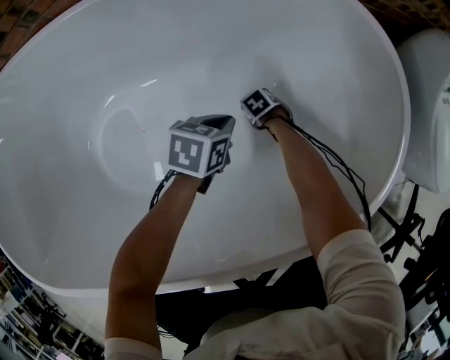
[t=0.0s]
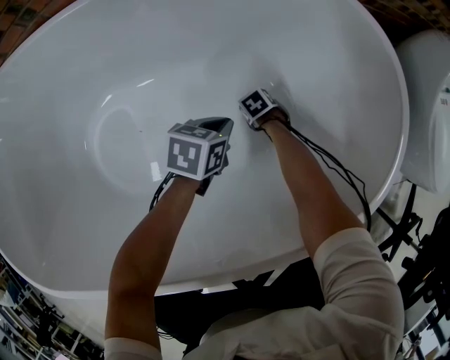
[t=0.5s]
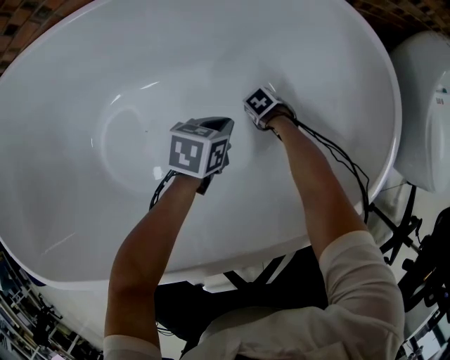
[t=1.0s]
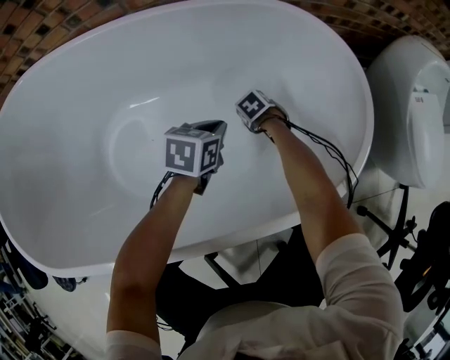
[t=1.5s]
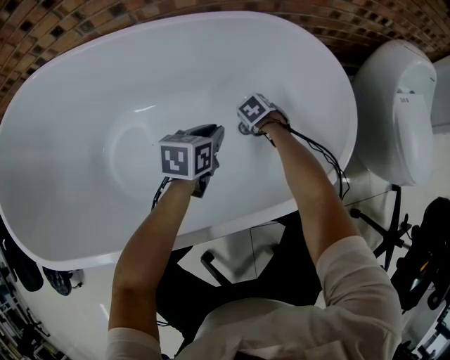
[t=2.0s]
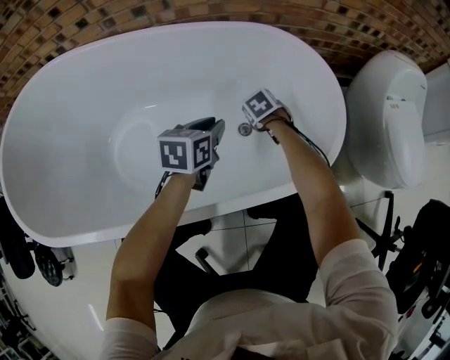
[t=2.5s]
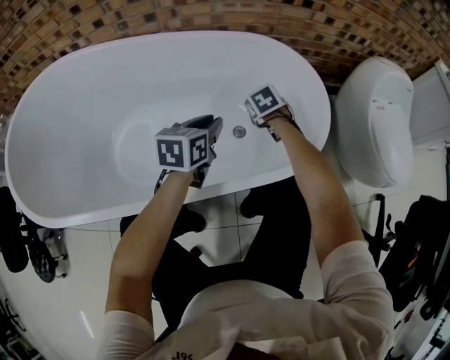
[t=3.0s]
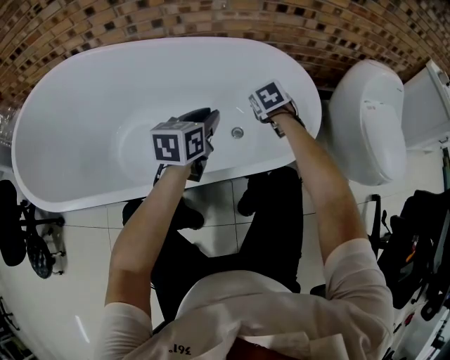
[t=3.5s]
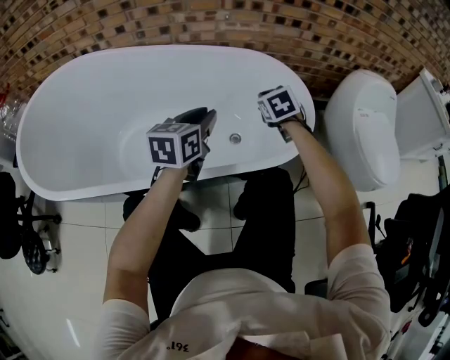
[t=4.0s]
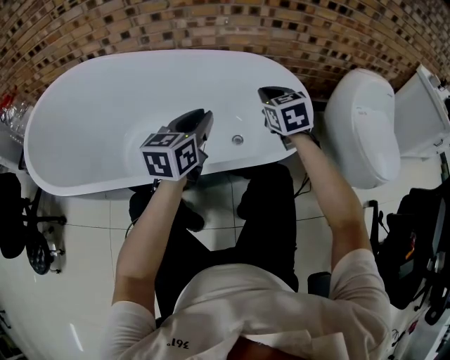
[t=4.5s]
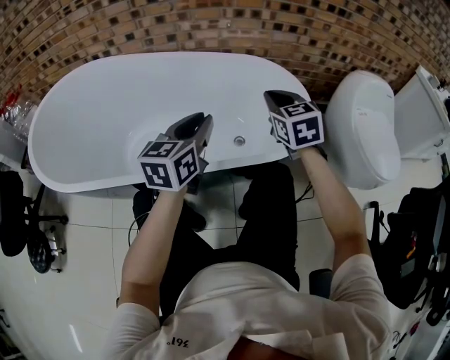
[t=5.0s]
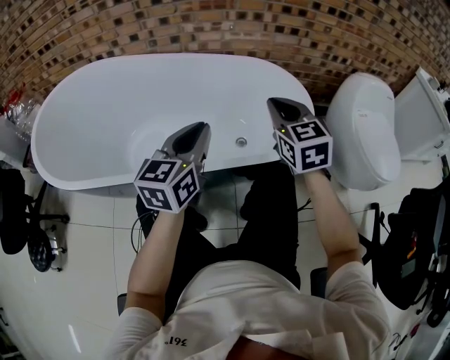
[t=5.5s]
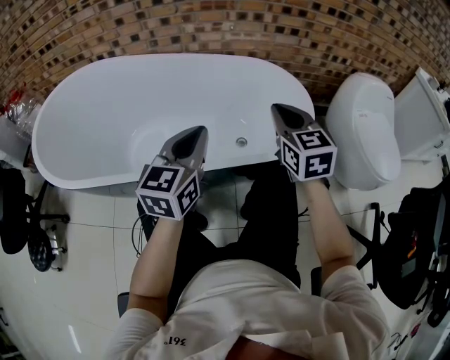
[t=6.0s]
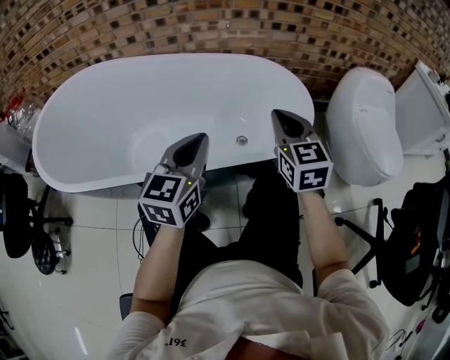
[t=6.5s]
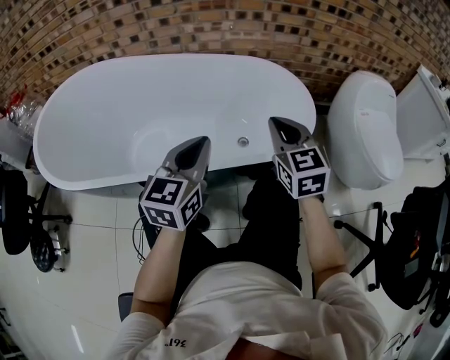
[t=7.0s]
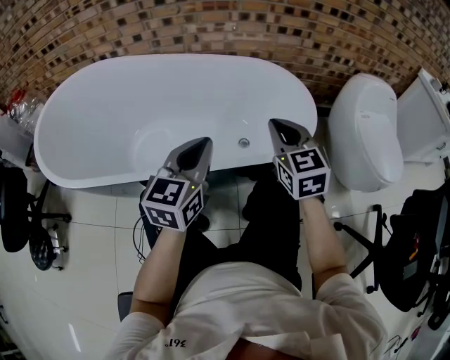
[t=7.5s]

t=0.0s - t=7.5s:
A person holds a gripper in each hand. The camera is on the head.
t=0.0s - t=2.0s: The grippers both shift upward by some 15 cm.
t=2.0s - t=4.0s: The two grippers go roughly 25 cm upward. The left gripper swivels about 30 degrees. Meanwhile the right gripper points its fingers approximately 30 degrees further upward.
t=4.0s - t=5.5s: The right gripper travels backward and upward by roughly 25 cm, and turns by roughly 30 degrees; the left gripper moves backward and upward, about 15 cm.
t=5.5s - t=7.5s: There are only small adjustments of the grippers.

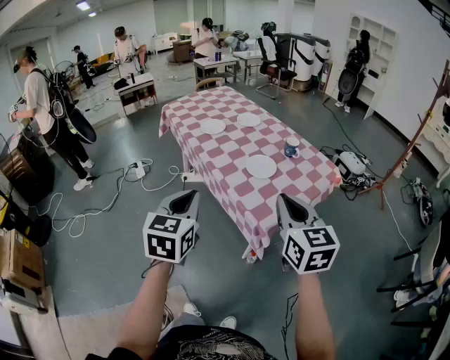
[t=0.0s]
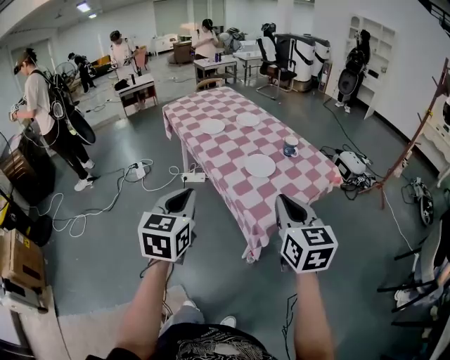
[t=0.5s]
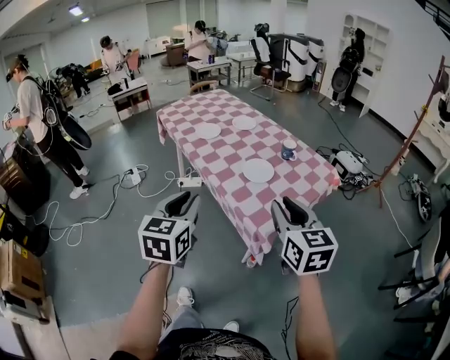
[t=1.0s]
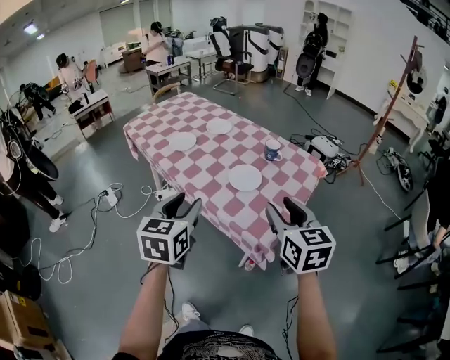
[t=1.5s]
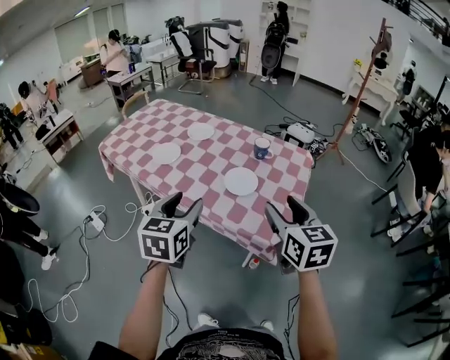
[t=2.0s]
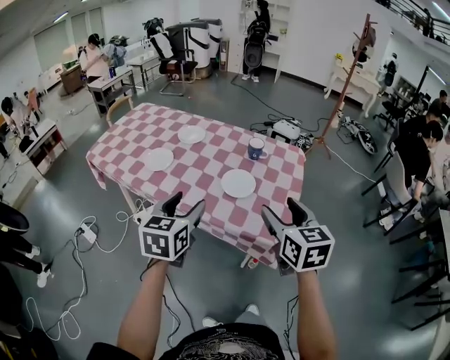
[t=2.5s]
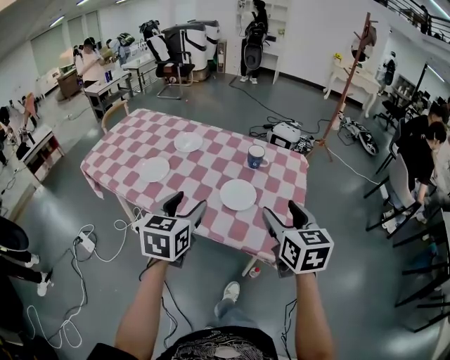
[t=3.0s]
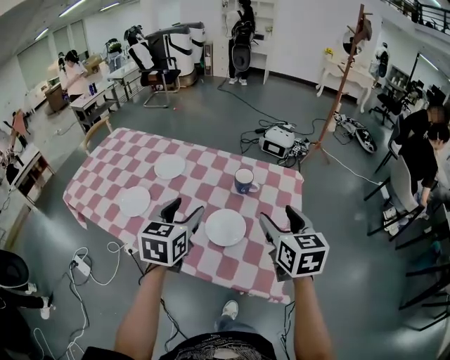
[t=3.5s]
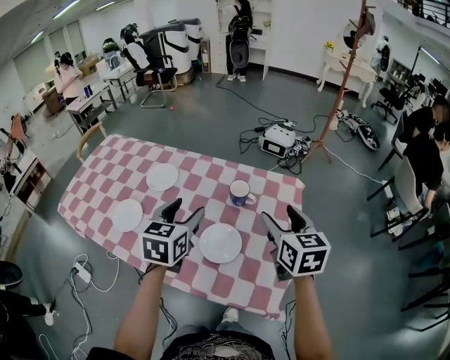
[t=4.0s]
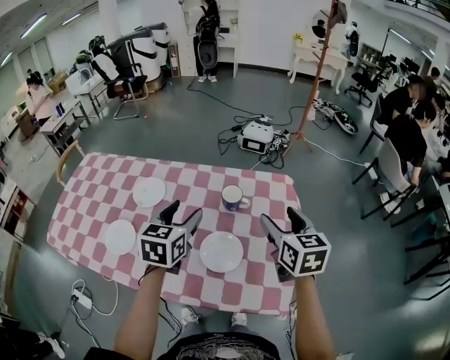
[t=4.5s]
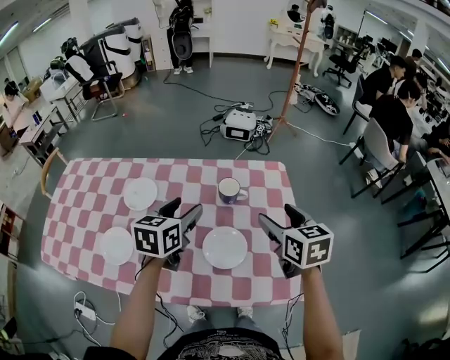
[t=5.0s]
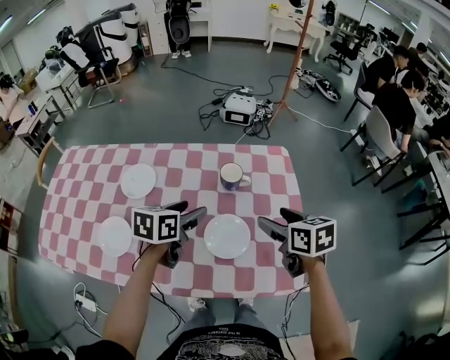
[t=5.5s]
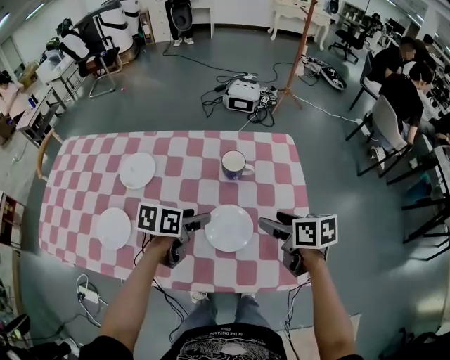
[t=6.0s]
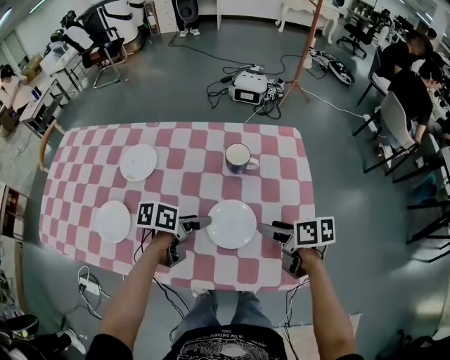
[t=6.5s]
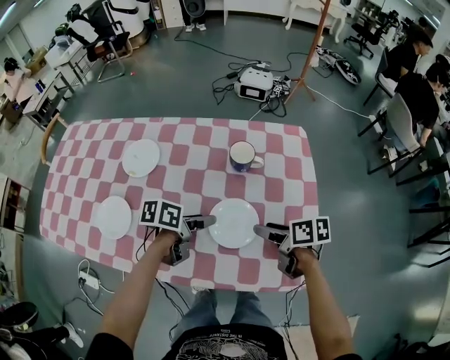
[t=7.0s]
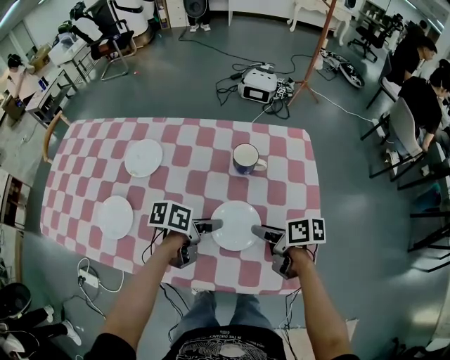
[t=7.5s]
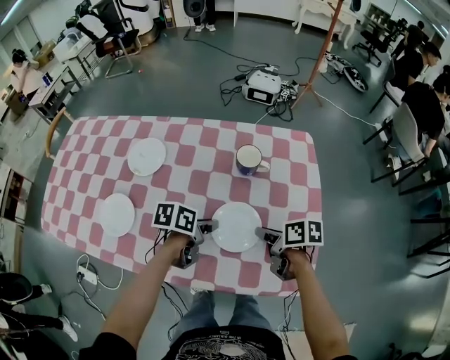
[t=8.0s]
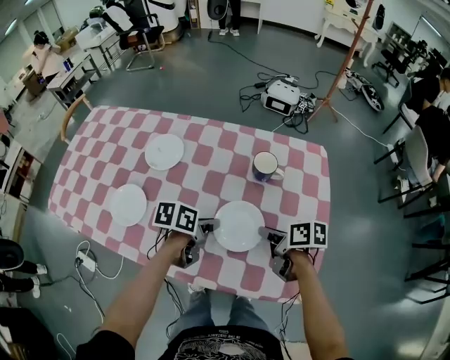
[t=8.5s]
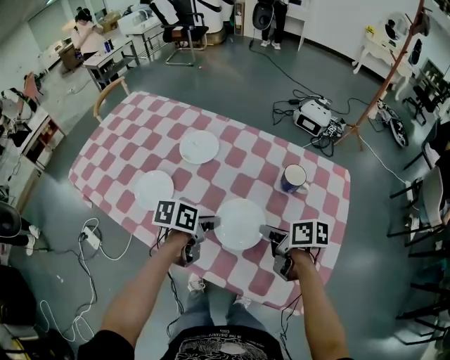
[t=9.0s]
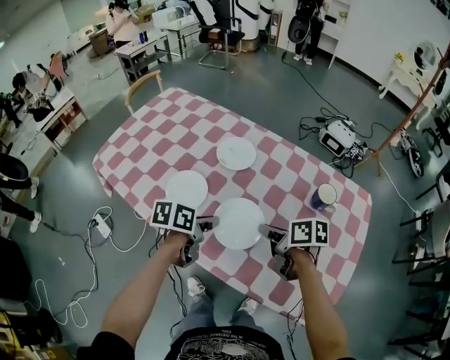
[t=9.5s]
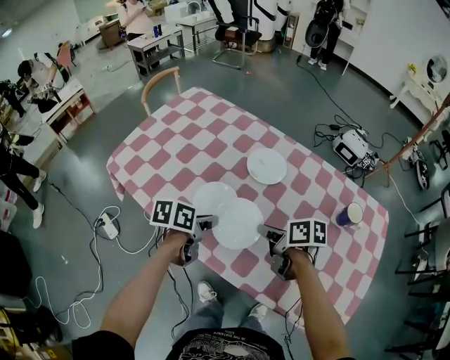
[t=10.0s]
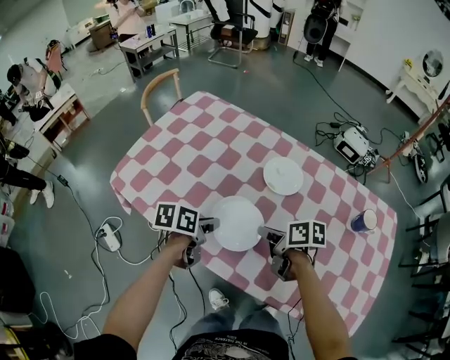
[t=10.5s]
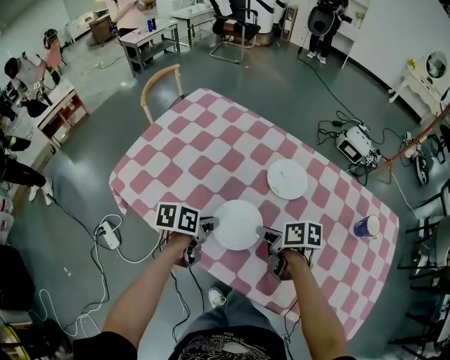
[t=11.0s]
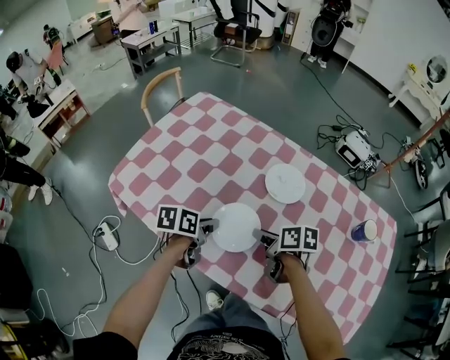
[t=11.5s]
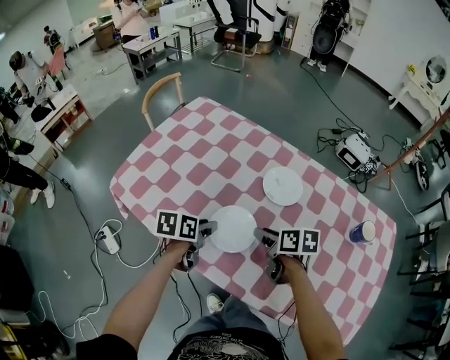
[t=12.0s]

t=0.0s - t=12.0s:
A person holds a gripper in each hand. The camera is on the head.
t=0.0s - t=2.0s: The right gripper shifts by some 10 cm, rotates some 30 degrees, and opens up. The left gripper shifts by about 20 cm, rotates some 30 degrees, and opens.
t=2.0s - t=4.0s: The two grippers go about 30 cm forward.
t=4.0s - t=6.0s: Both grippers move downward, some 15 cm. The right gripper changes its angle by approximately 40 degrees. Meanwhile the left gripper rotates approximately 50 degrees.
t=6.0s - t=8.0s: The grippers both shift downward by roughly 10 cm. The left gripper closes its fingers. Meanwhile the right gripper swivels approximately 20 degrees, and closes its fingers.
t=8.0s - t=10.0s: The right gripper moves some 35 cm, and swivels roughly 30 degrees; the left gripper ends up about 35 cm from where it was, and rotates some 30 degrees.
t=10.0s - t=12.0s: The right gripper is displaced forward and to the left by approximately 10 cm, while the left gripper heads to the left and forward, covering about 10 cm, and opens.

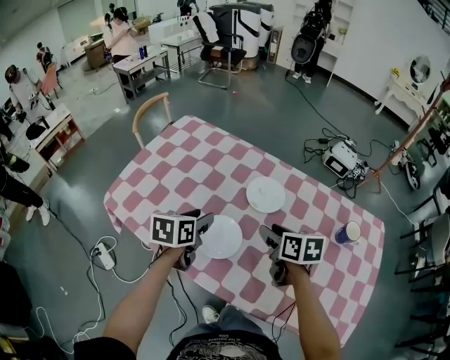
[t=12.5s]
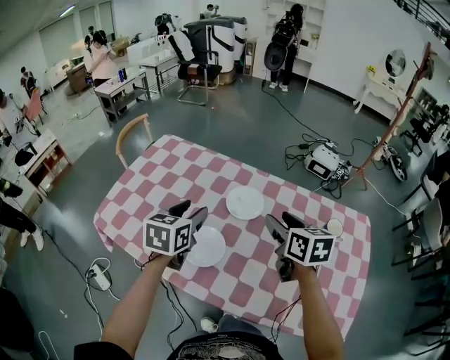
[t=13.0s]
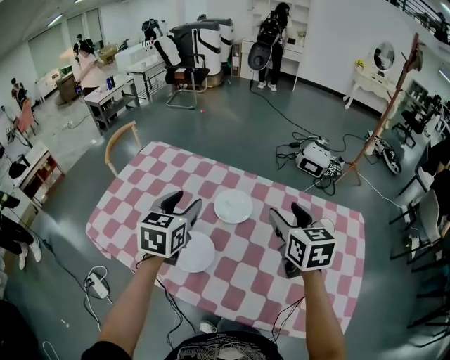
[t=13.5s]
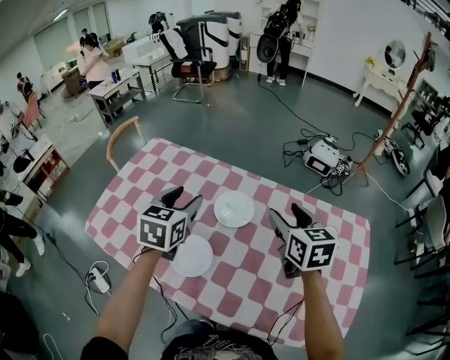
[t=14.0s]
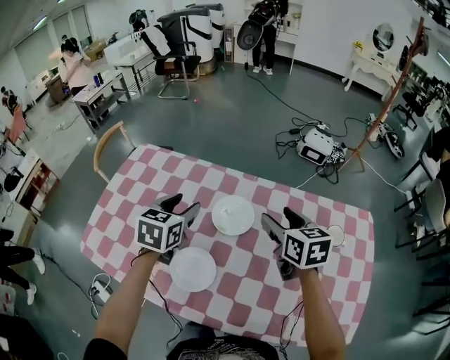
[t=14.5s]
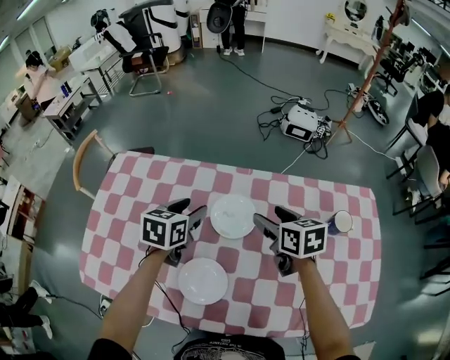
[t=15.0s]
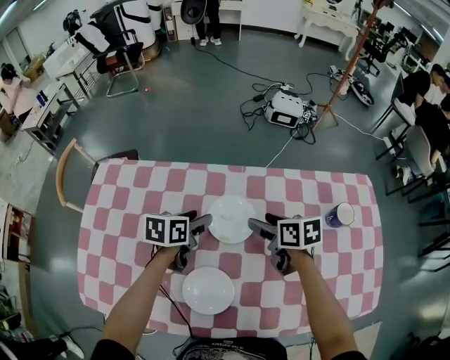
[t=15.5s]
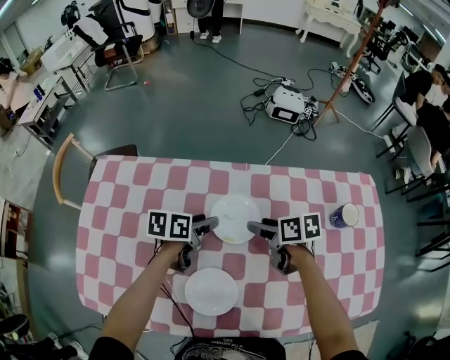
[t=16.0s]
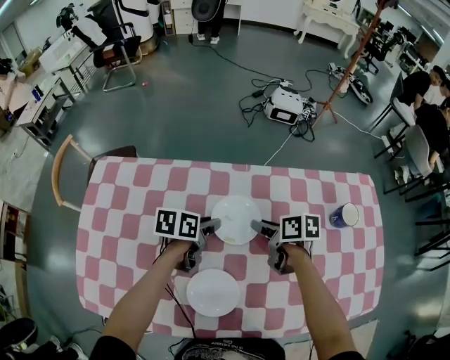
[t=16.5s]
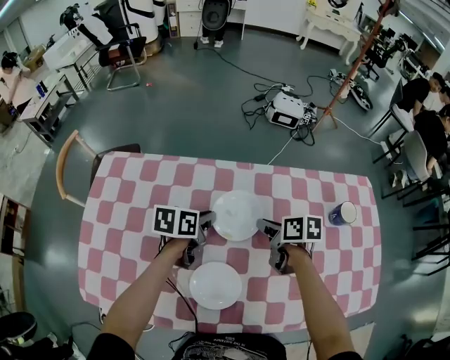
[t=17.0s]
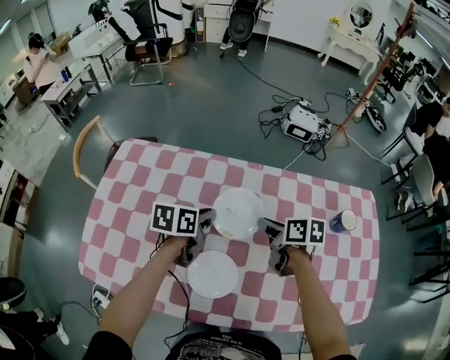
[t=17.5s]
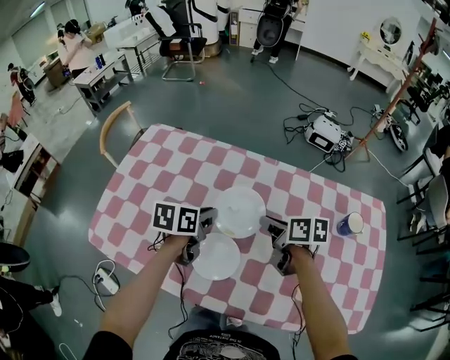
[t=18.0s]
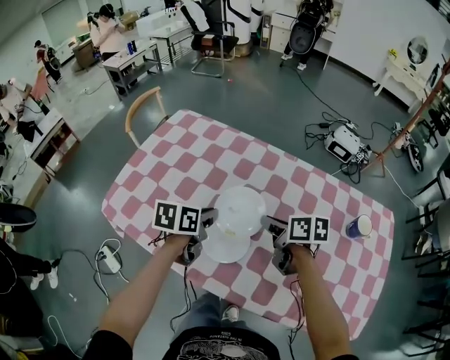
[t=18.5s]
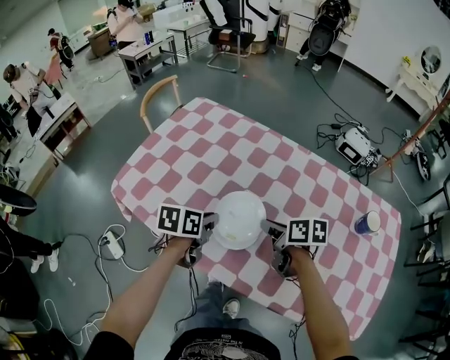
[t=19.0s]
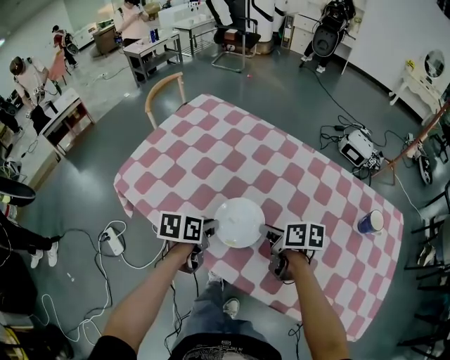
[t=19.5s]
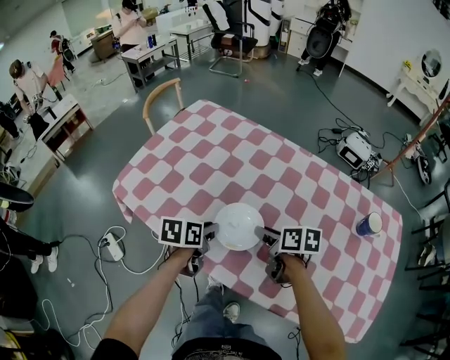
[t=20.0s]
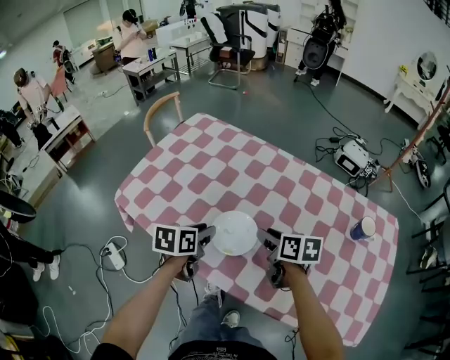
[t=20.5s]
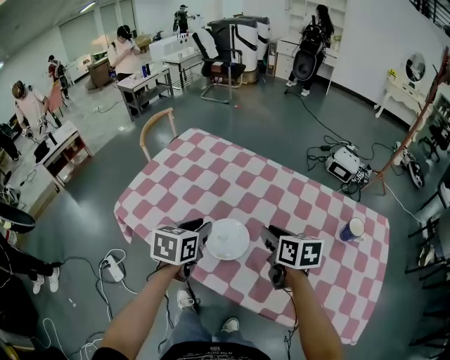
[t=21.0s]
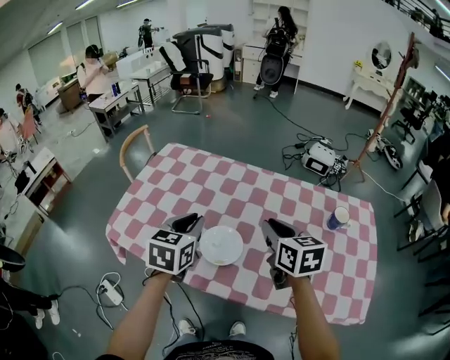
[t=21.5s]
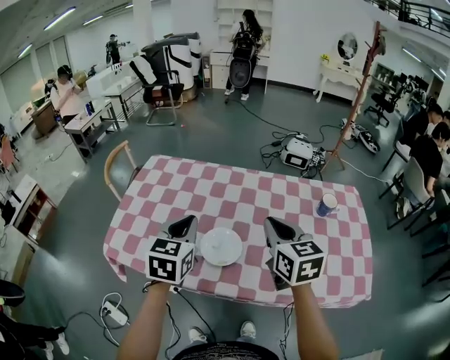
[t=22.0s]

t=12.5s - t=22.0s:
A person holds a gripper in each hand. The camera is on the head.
t=12.5s - t=14.5s: The left gripper travels forward, to the right and upward by approximately 15 cm, and changes its angle by about 30 degrees. Meanwhile the right gripper shifts approximately 15 cm to the right, forward and upward, and rotates some 20 degrees.
t=14.5s - t=16.5s: The grippers both shift downward by approximately 20 cm. The left gripper rotates some 50 degrees, while the right gripper rotates some 40 degrees, and closes.
t=16.5s - t=18.0s: The left gripper goes some 15 cm backward, upward and to the left, swivels approximately 20 degrees, and closes up, while the right gripper travels upward and backward by approximately 10 cm, and closes its fingers.
t=18.0s - t=20.0s: The two grippers go roughly 15 cm backward, to the left and downward.
t=20.0s - t=22.0s: Both grippers move upward, about 25 cm. The right gripper rotates about 50 degrees, and closes its fingers, while the left gripper twists roughly 40 degrees clockwise, seen from behind.
